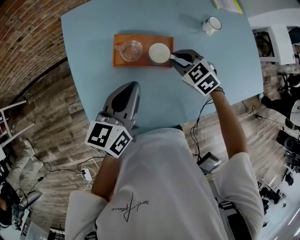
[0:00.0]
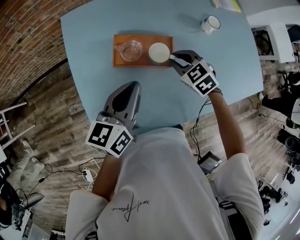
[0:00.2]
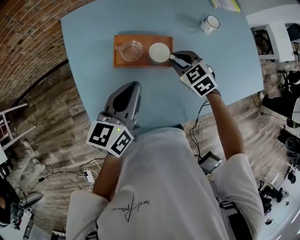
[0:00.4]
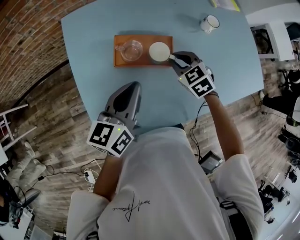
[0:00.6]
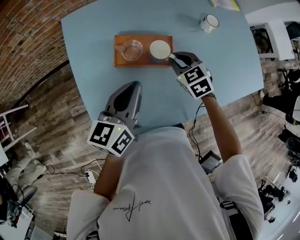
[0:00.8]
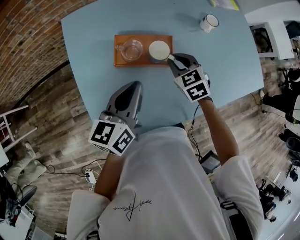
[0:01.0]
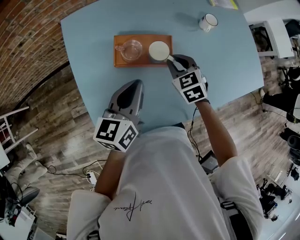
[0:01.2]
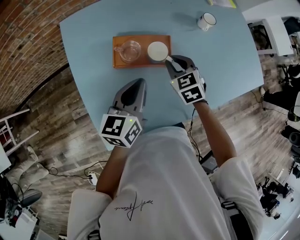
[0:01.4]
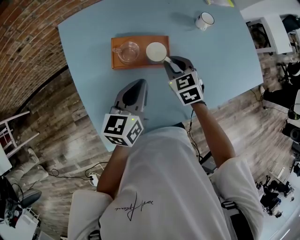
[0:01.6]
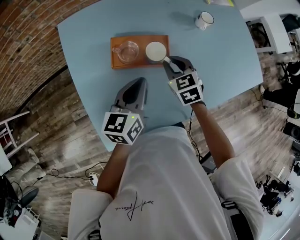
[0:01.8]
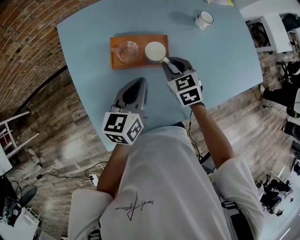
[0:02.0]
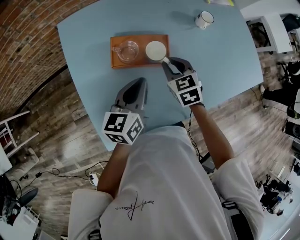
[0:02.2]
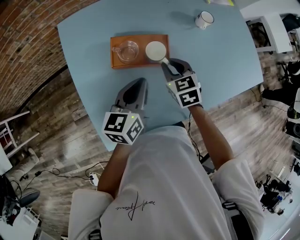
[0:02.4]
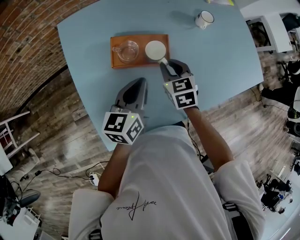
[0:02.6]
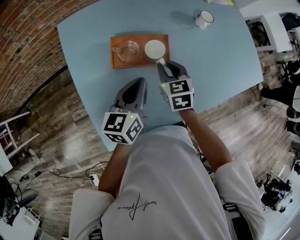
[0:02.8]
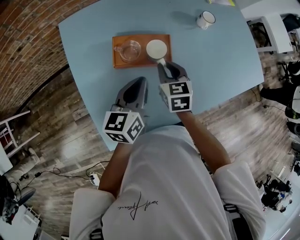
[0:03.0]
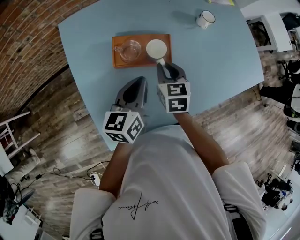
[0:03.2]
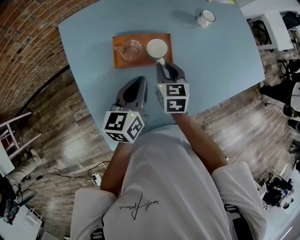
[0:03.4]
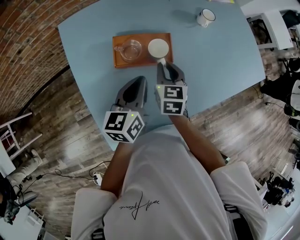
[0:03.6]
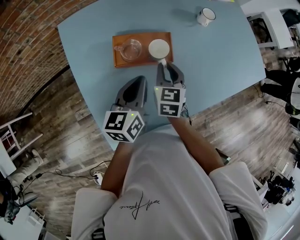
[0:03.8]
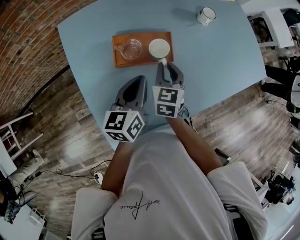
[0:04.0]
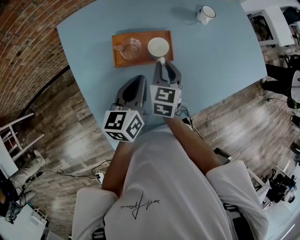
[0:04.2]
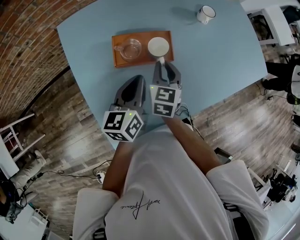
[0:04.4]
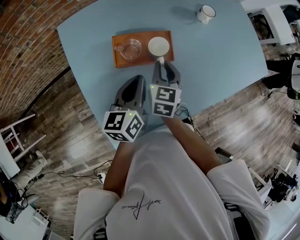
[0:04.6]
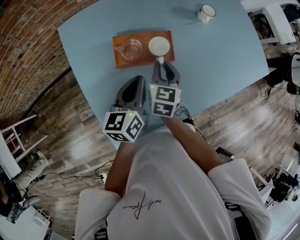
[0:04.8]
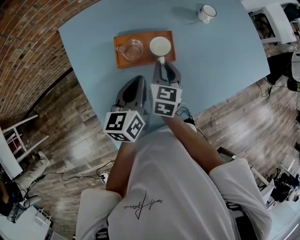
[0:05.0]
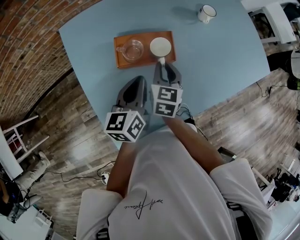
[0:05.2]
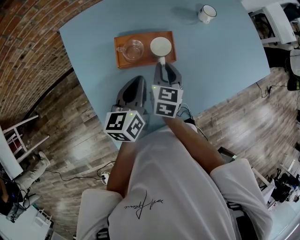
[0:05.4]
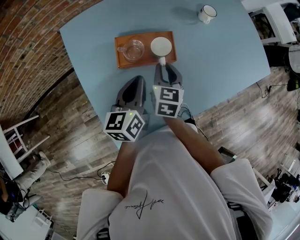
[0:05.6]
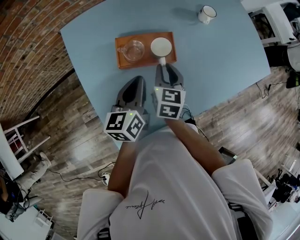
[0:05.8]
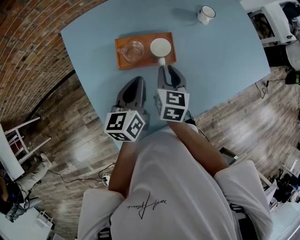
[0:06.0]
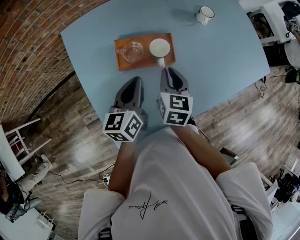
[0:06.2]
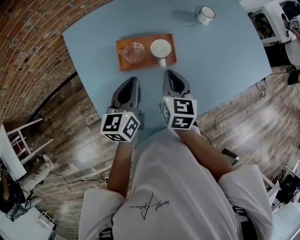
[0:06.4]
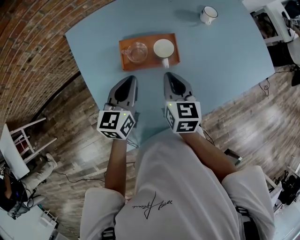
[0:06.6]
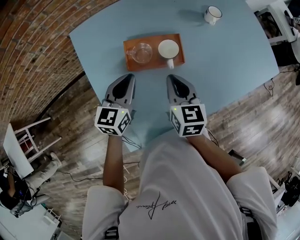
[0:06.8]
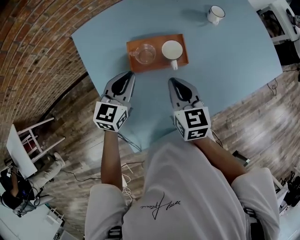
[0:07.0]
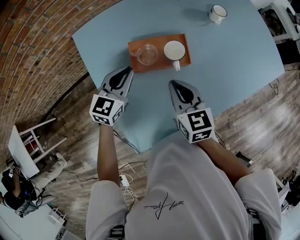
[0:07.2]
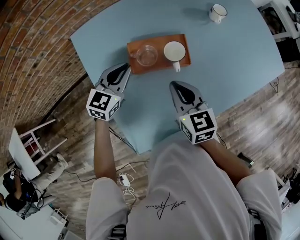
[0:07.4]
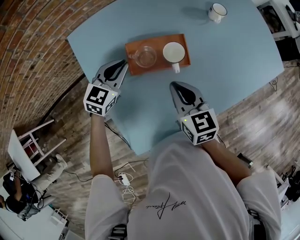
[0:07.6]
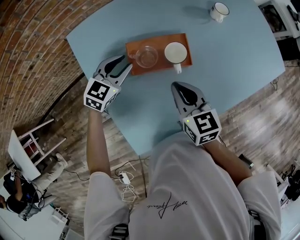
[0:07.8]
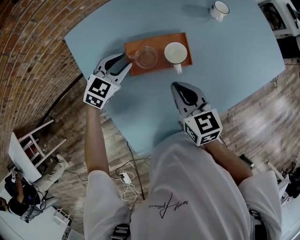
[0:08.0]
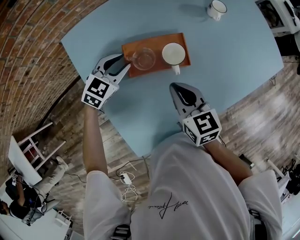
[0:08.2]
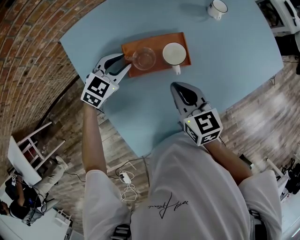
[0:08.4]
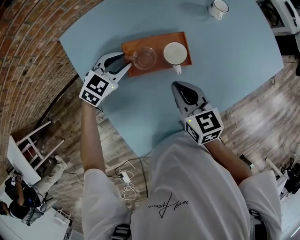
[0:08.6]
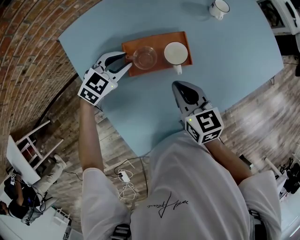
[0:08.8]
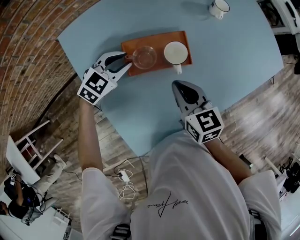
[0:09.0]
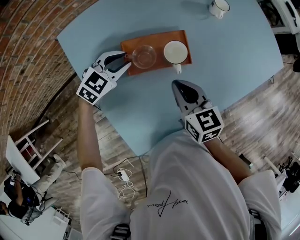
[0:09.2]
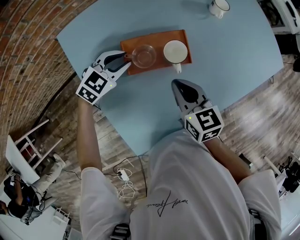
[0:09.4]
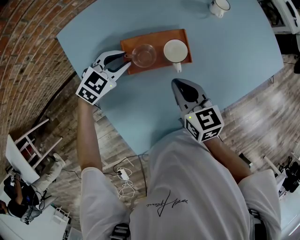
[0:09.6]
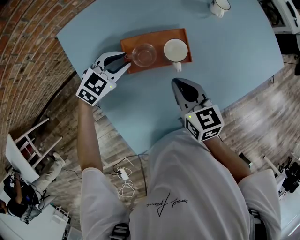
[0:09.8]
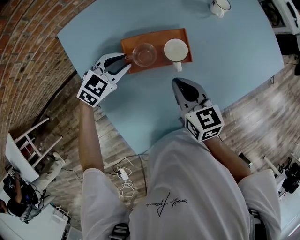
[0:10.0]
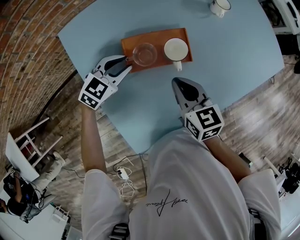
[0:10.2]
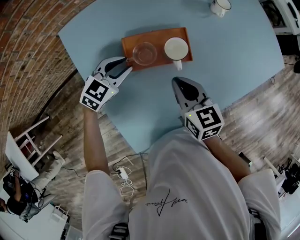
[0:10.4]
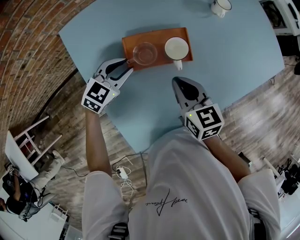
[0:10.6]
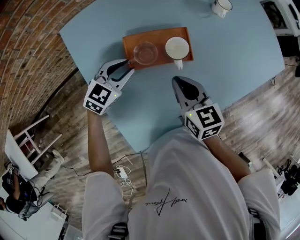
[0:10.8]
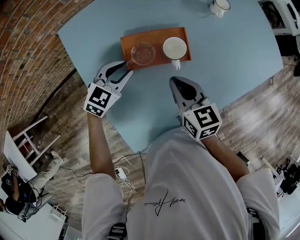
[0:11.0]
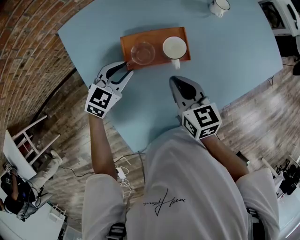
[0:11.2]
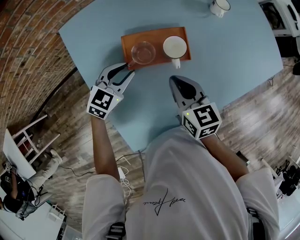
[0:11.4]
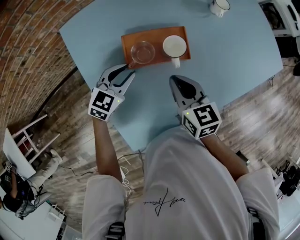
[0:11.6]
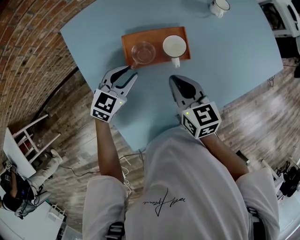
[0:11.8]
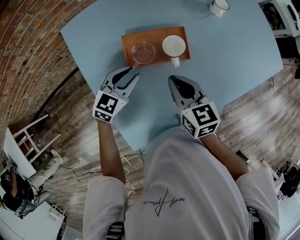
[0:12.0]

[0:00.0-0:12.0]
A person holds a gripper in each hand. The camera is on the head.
0.0 to 1.6 s: The right gripper changes its angle by about 30 degrees.
1.6 to 3.0 s: The right gripper rotates approximately 20 degrees.
3.0 to 4.4 s: The grippers stay close to where they were, moving slightly.
4.4 to 6.0 s: The grippers stay close to where they were, moving slightly.
6.0 to 7.6 s: The left gripper travels to the left and forward by about 10 cm, and twists approximately 40 degrees clockwise, seen from behind, while the right gripper ends up roughly 5 cm from where it was, and turns by about 20 degrees.
7.6 to 9.0 s: The left gripper swivels roughly 20 degrees, and opens its fingers.
9.0 to 10.4 s: There are only small adjustments of the grippers.
10.4 to 12.0 s: The grippers move only a little.

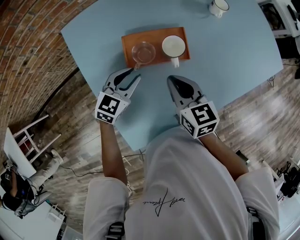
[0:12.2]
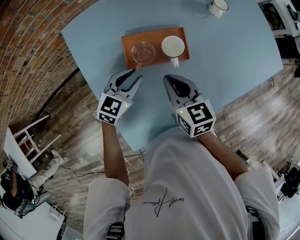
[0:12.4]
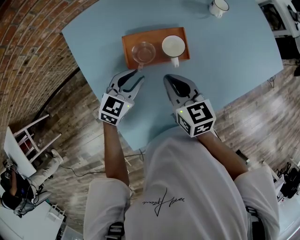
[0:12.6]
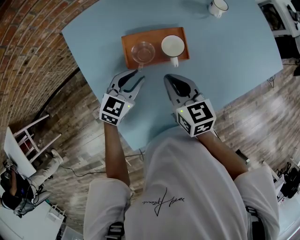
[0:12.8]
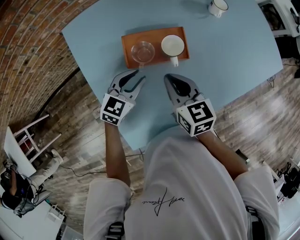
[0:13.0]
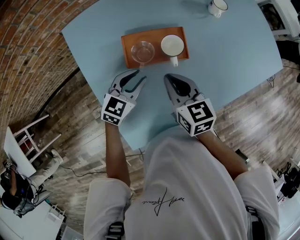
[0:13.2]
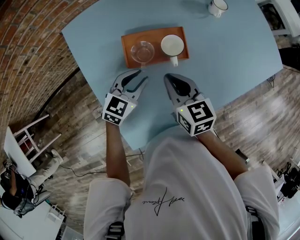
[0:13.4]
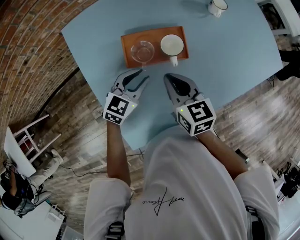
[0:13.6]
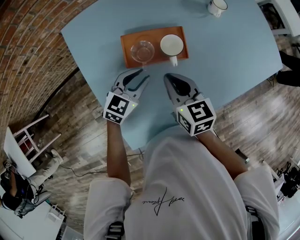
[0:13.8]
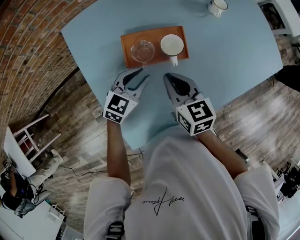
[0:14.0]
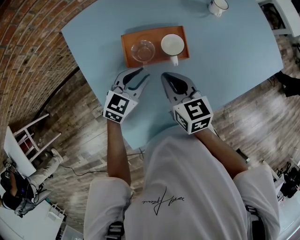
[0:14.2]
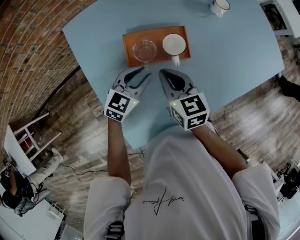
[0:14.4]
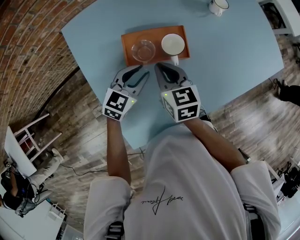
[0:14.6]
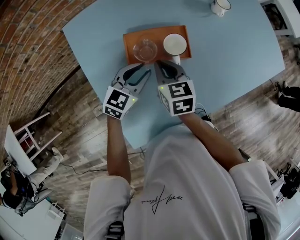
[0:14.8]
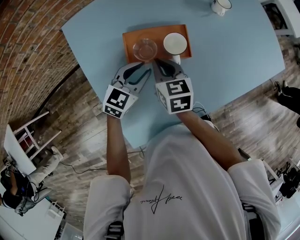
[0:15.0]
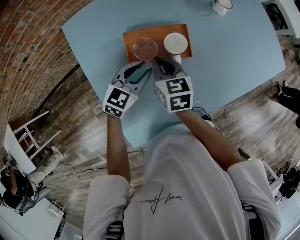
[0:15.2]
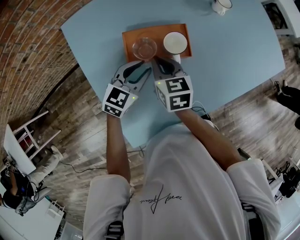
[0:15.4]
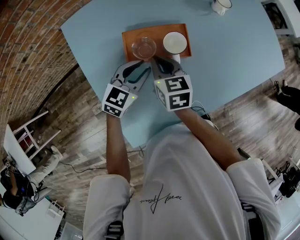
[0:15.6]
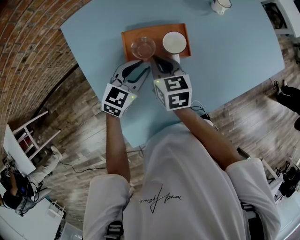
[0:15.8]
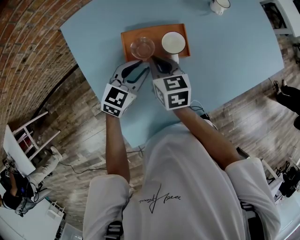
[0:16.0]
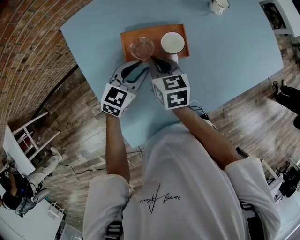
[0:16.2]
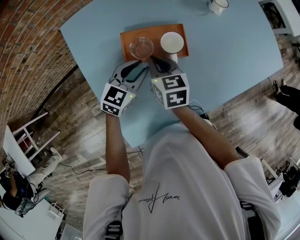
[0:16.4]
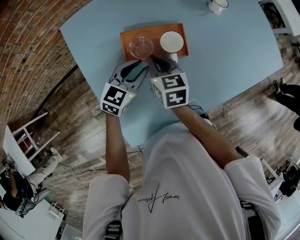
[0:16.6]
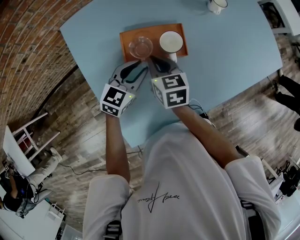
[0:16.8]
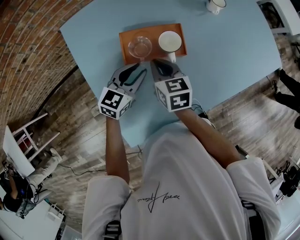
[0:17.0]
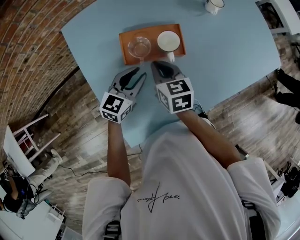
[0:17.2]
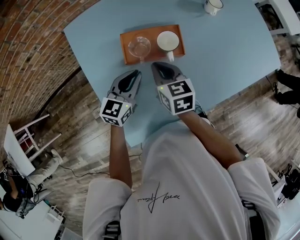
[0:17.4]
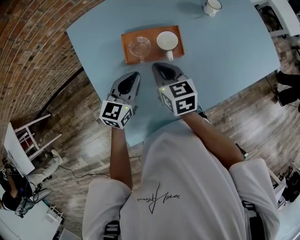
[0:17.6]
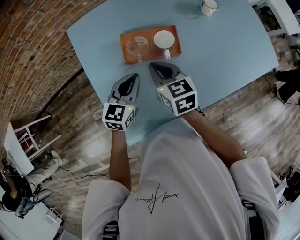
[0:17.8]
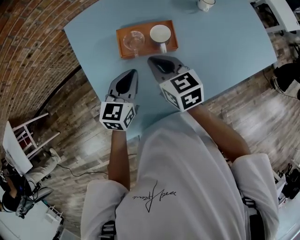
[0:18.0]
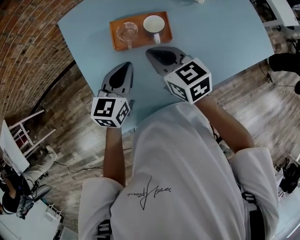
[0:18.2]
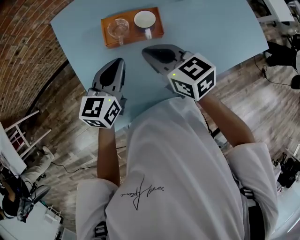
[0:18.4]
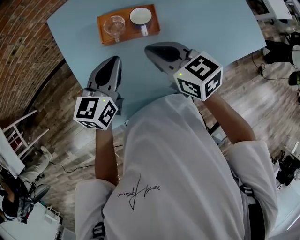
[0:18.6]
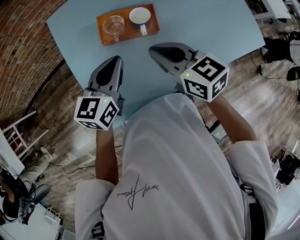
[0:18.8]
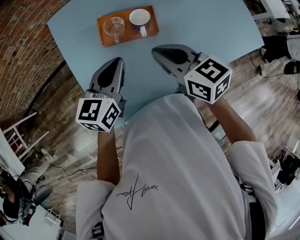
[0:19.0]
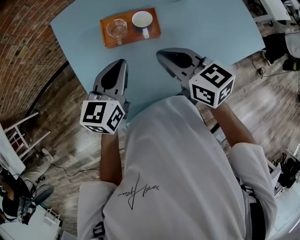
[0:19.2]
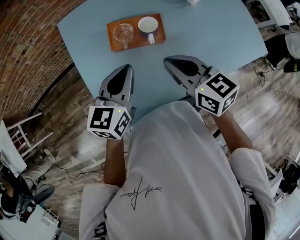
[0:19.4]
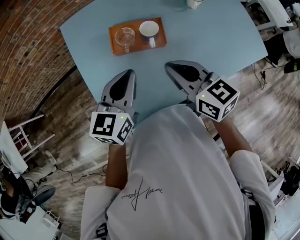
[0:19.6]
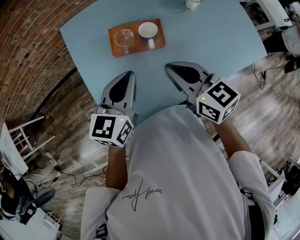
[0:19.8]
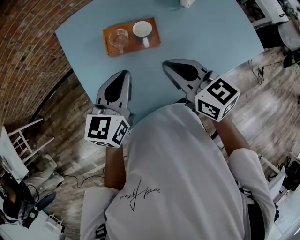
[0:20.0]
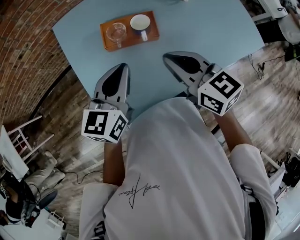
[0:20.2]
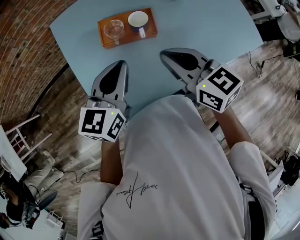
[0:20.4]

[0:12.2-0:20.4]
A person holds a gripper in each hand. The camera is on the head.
12.2 to 13.8 s: The grippers stay close to where they were, moving slightly.
13.8 to 15.4 s: The right gripper shifts by approximately 10 cm.
15.4 to 17.2 s: The grippers make only small movements.
17.2 to 18.8 s: The two grippers go roughly 15 cm upward and backward. The right gripper turns by about 20 degrees. Meanwhile the left gripper closes up.
18.8 to 20.4 s: The left gripper goes approximately 5 cm upward; the right gripper moves roughly 5 cm.

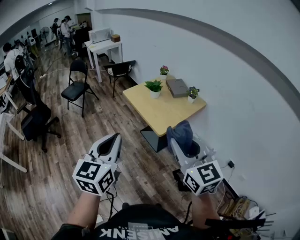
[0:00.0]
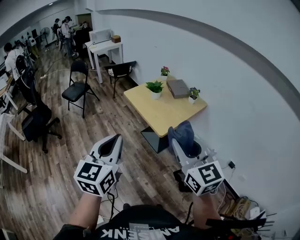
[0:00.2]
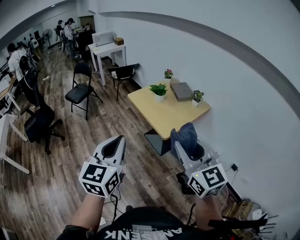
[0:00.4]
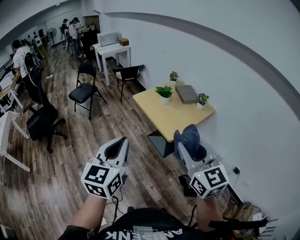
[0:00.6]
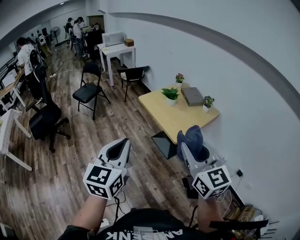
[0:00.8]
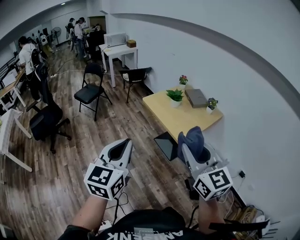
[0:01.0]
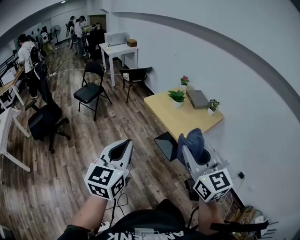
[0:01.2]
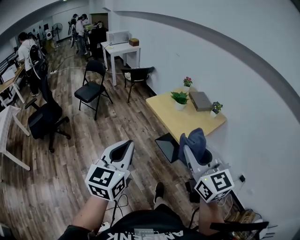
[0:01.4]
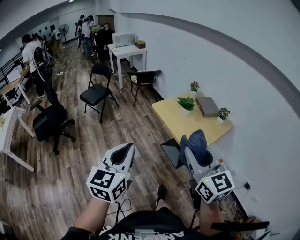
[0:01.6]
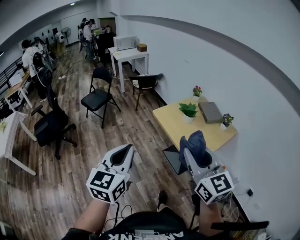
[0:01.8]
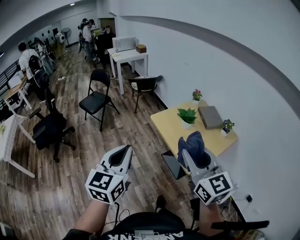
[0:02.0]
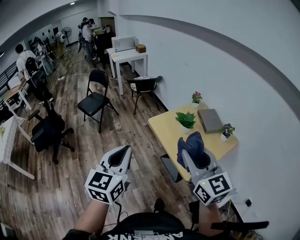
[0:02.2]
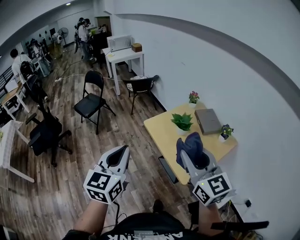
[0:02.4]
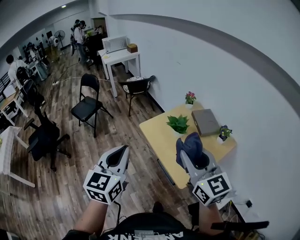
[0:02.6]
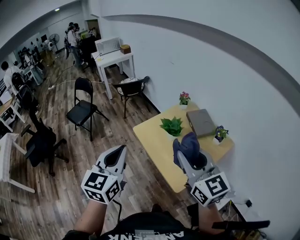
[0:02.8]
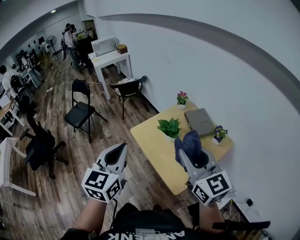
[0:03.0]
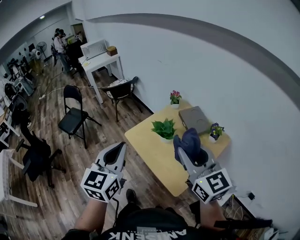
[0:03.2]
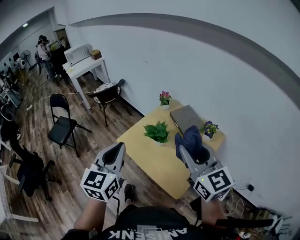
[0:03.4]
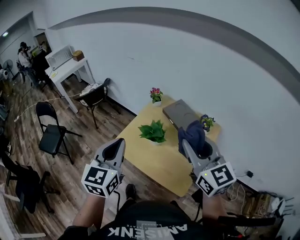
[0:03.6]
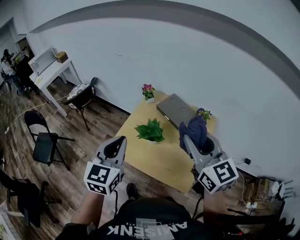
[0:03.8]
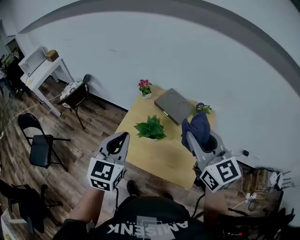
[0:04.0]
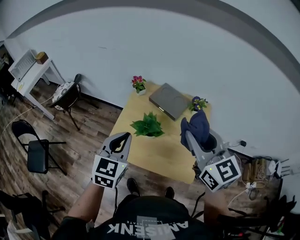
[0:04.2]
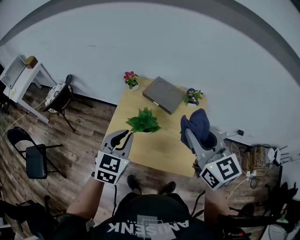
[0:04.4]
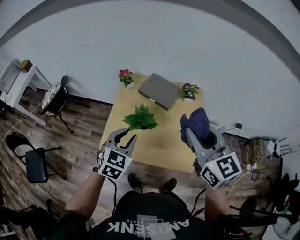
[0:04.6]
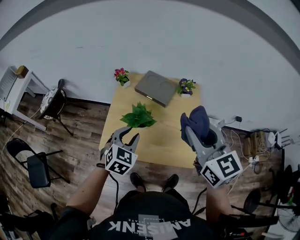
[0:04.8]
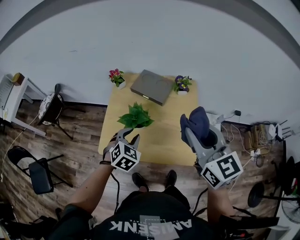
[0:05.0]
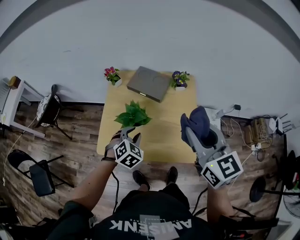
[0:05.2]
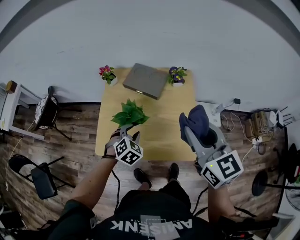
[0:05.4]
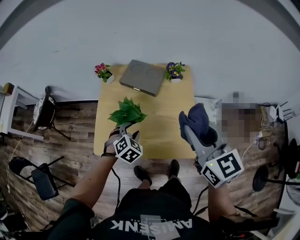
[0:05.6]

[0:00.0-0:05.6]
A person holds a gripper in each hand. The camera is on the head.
0.0 to 1.4 s: Both grippers move to the left and forward, some 15 cm.
1.4 to 2.8 s: The grippers both shift forward and to the right by about 35 cm.
2.8 to 4.2 s: The left gripper ends up roughly 30 cm from where it was, and rotates some 40 degrees. The right gripper changes place by approximately 15 cm, and rotates roughly 40 degrees.
4.2 to 5.6 s: The left gripper shifts some 25 cm downward, points its fingers about 30 degrees further downward, and opens its fingers. The right gripper travels downward and to the right by roughly 10 cm.
